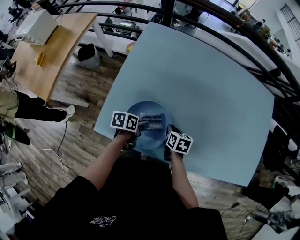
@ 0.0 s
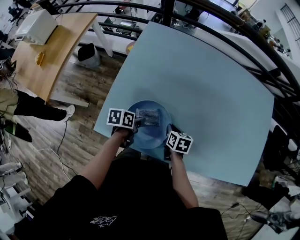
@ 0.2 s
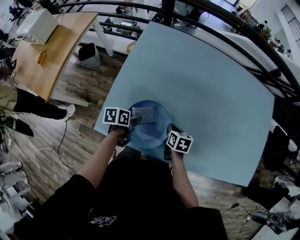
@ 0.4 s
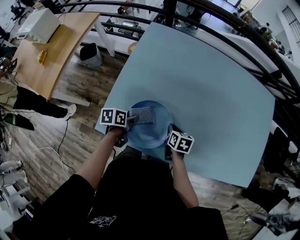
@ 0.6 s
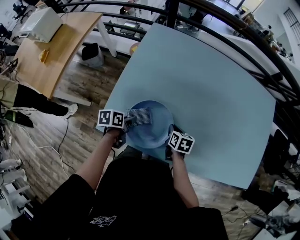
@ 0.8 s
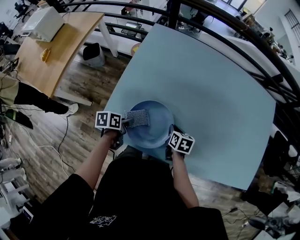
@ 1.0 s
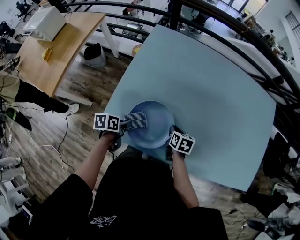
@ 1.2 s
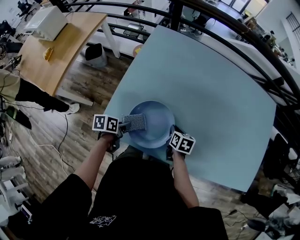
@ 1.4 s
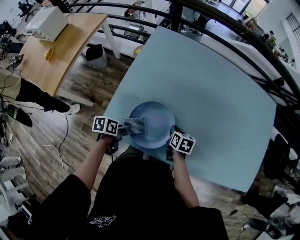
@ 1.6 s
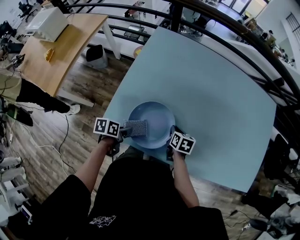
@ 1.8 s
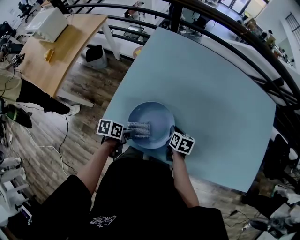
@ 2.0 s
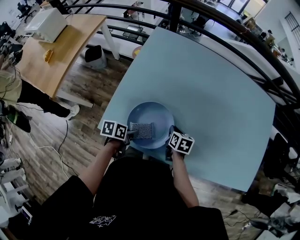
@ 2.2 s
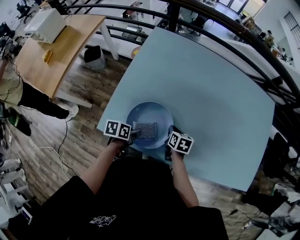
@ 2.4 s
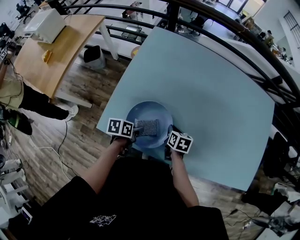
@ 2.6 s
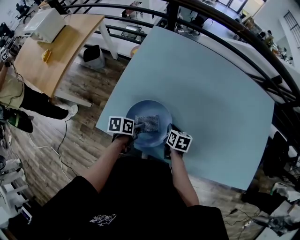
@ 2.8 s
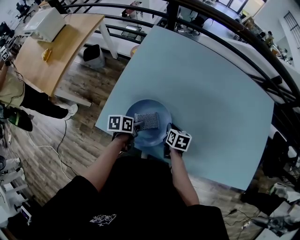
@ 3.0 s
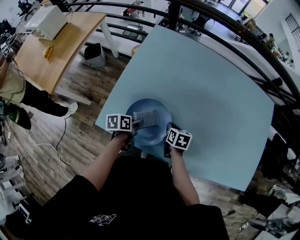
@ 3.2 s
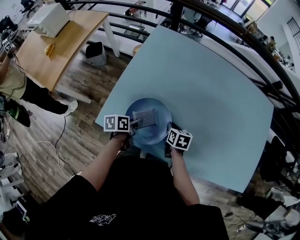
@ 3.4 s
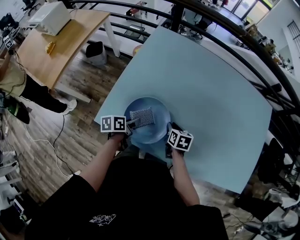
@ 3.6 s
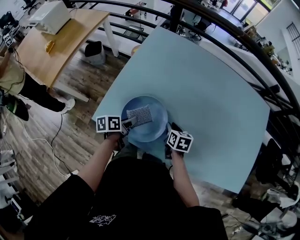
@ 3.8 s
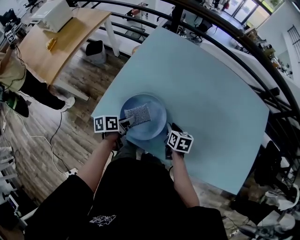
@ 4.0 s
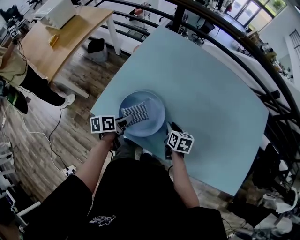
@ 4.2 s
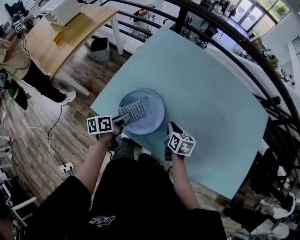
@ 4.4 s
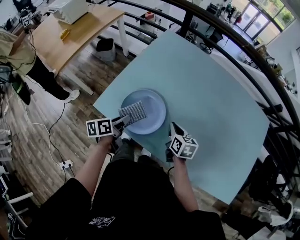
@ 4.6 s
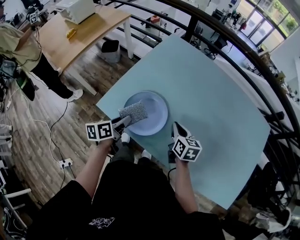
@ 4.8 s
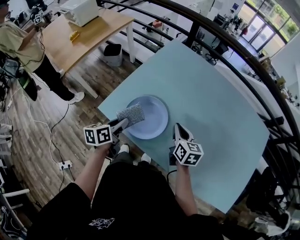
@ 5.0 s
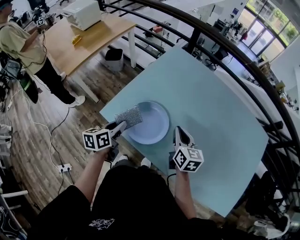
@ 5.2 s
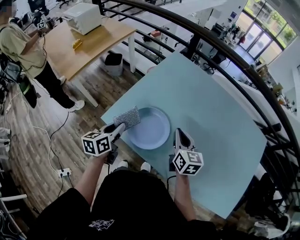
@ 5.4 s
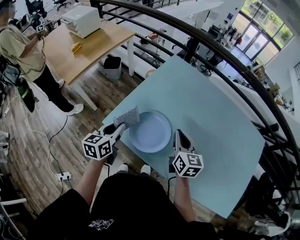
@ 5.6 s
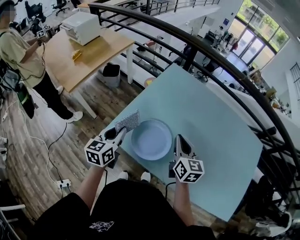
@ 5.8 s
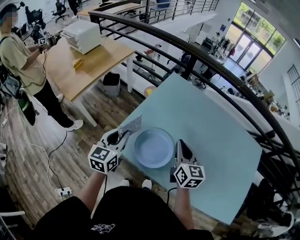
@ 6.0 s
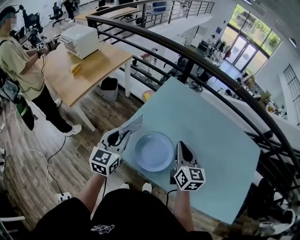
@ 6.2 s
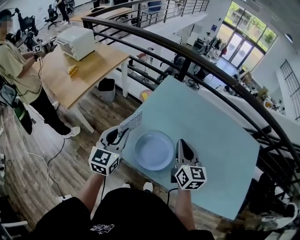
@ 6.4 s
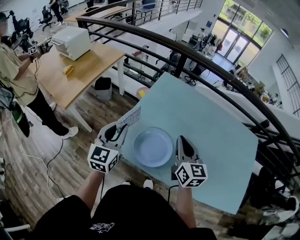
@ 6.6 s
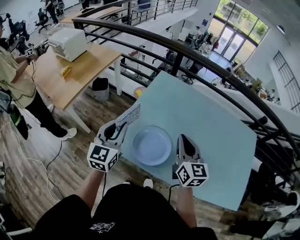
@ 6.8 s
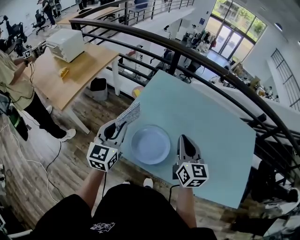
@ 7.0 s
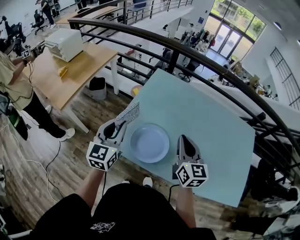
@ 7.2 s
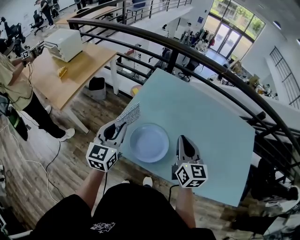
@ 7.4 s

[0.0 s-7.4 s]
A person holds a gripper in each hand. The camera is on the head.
0.0 to 1.4 s: The left gripper goes approximately 10 cm to the left and backward.
1.4 to 3.0 s: The left gripper heads to the right, covering about 5 cm.
3.0 to 4.4 s: The grippers both shift upward by some 5 cm. The left gripper turns by approximately 30 degrees.
4.4 to 6.0 s: Both grippers travel together upward and to the left, roughly 25 cm. The left gripper rotates around the line of its fingers by some 50 degrees, clockwise from behind. Meanwhile the right gripper rotates roughly 30 degrees.
6.0 to 7.4 s: The right gripper changes place by roughly 5 cm; the left gripper moves upward, about 5 cm.

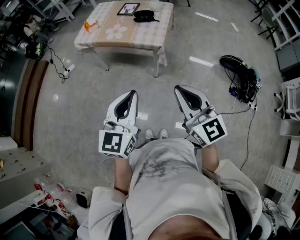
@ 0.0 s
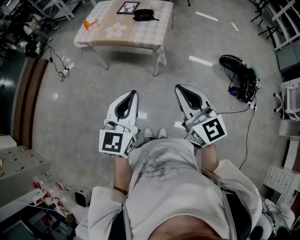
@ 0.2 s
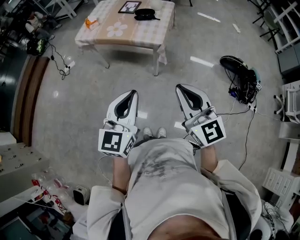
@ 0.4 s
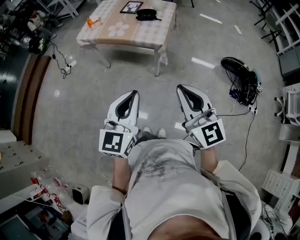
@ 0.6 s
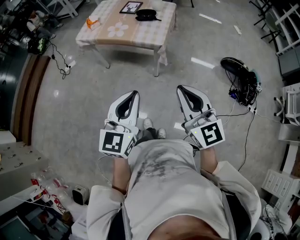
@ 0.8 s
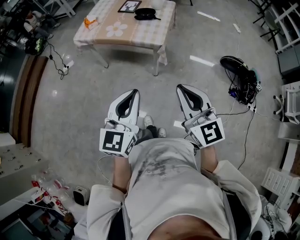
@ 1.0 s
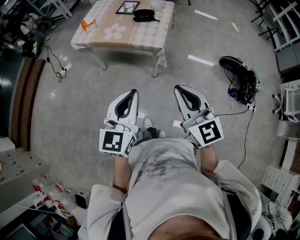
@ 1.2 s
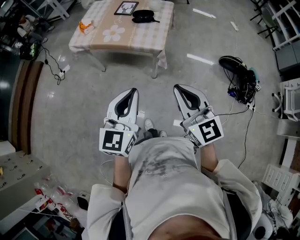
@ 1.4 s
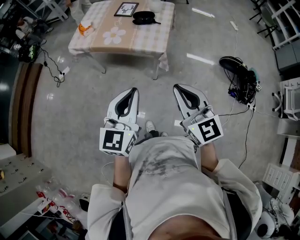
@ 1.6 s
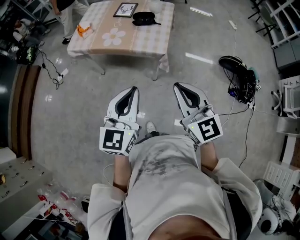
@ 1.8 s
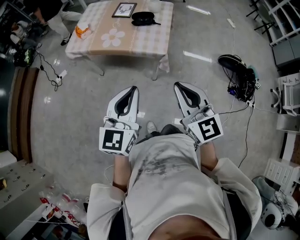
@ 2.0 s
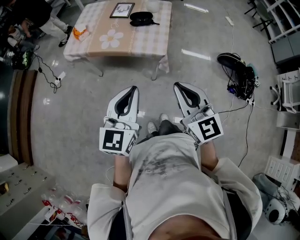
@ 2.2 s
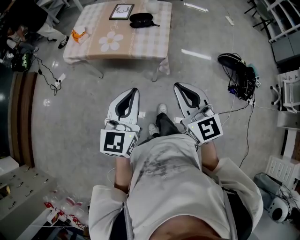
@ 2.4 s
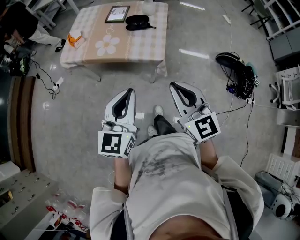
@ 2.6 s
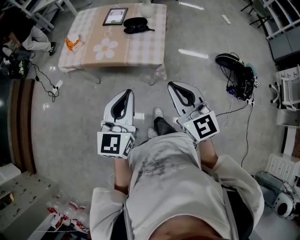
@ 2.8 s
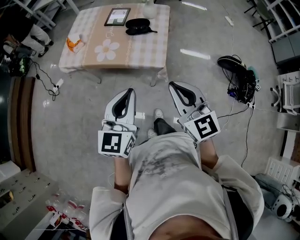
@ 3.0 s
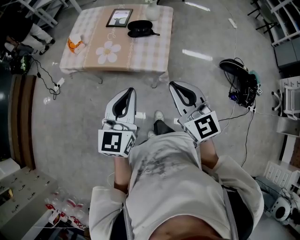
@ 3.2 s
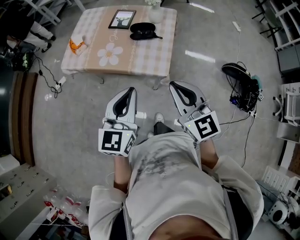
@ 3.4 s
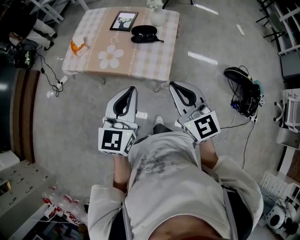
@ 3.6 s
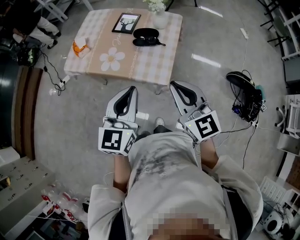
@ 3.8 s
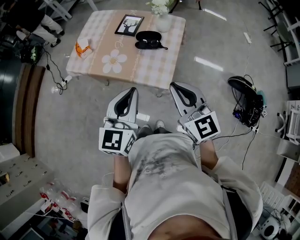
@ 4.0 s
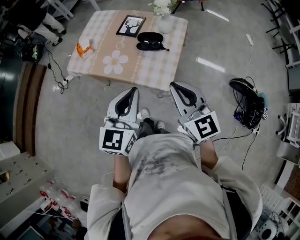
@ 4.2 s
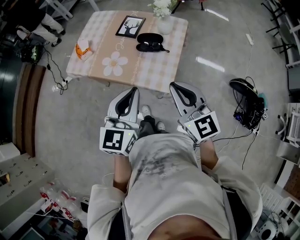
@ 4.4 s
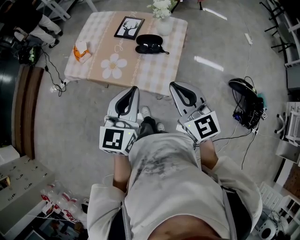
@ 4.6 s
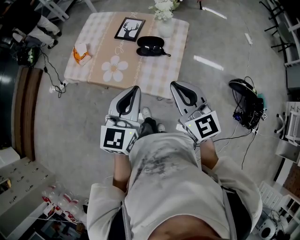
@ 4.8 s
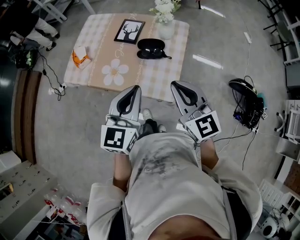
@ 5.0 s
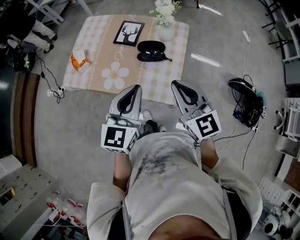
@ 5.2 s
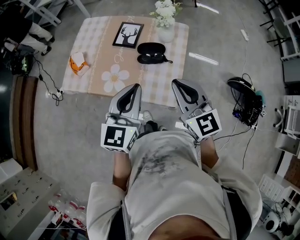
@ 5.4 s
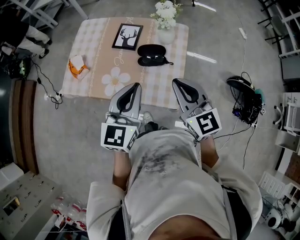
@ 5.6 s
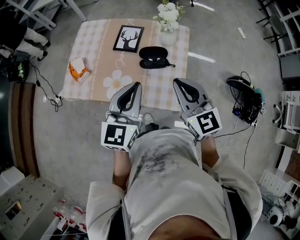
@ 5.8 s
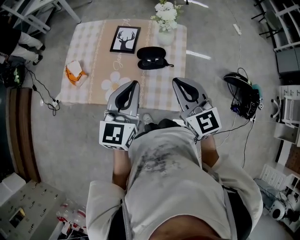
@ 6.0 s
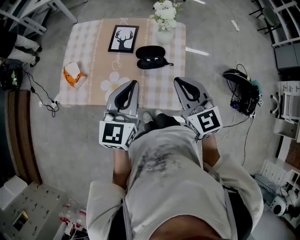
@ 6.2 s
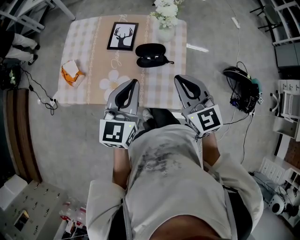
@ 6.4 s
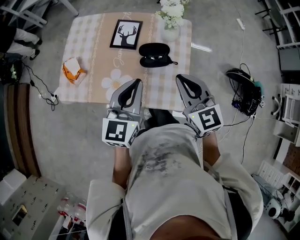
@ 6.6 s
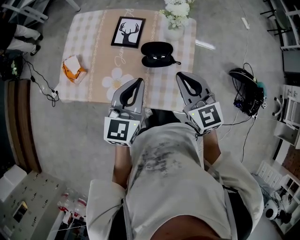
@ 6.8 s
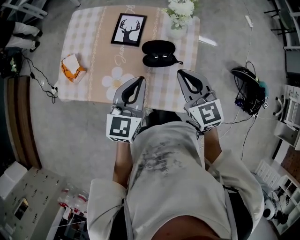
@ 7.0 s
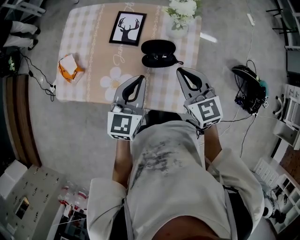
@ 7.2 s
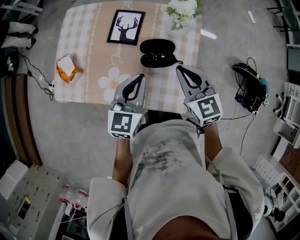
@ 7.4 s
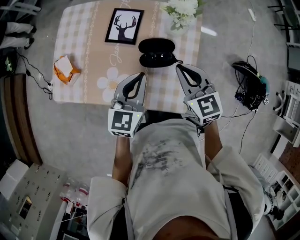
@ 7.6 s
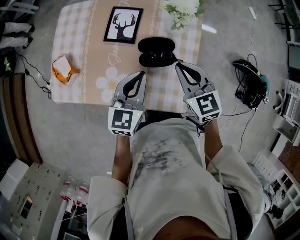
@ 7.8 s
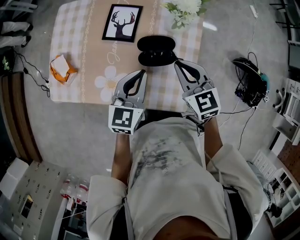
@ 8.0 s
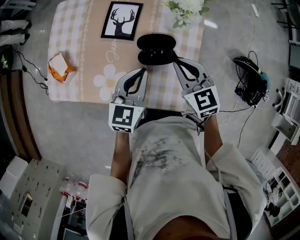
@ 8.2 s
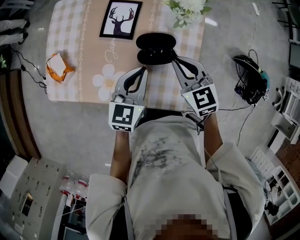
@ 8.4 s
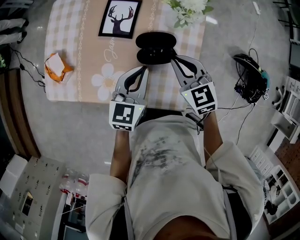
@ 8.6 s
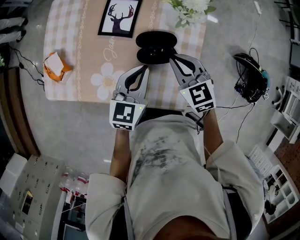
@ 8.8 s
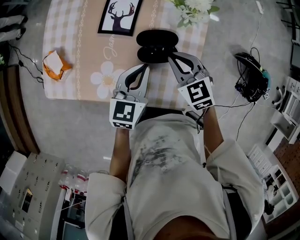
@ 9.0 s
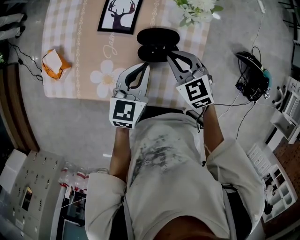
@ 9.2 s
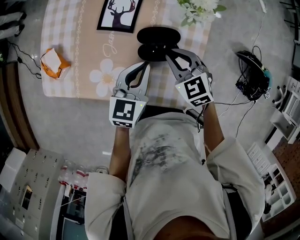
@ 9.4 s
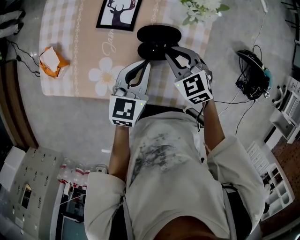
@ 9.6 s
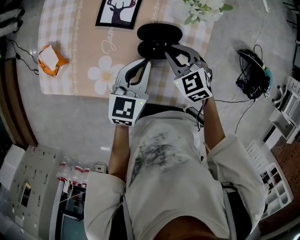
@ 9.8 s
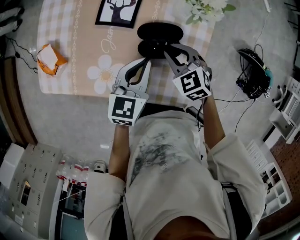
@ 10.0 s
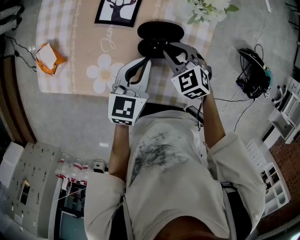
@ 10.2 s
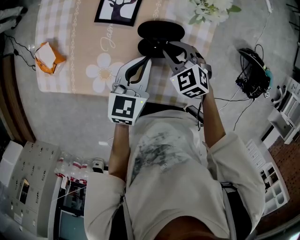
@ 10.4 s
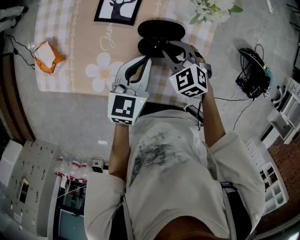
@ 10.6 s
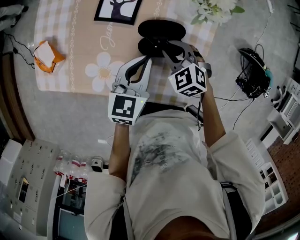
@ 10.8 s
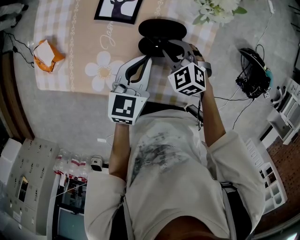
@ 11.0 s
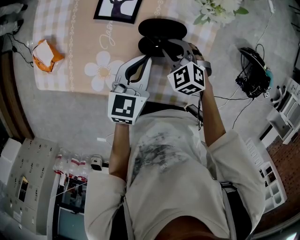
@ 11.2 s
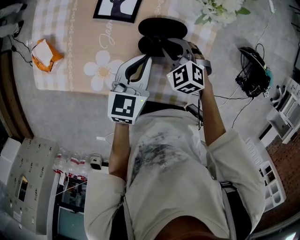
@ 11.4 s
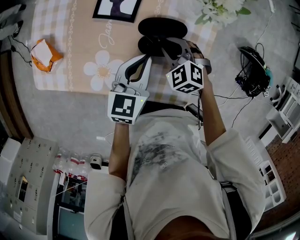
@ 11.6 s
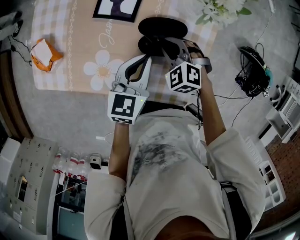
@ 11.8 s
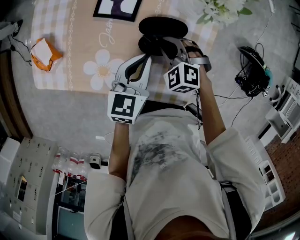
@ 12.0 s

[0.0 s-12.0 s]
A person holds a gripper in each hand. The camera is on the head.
0.0 to 1.6 s: The grippers both shift forward by about 10 cm.
1.6 to 3.0 s: Both grippers travel together forward, roughly 15 cm.
3.0 to 4.4 s: The two grippers go some 15 cm forward.
4.4 to 6.0 s: The grippers both shift forward by roughly 20 cm.
6.0 to 7.6 s: The right gripper goes approximately 20 cm forward and downward. The left gripper moves downward and forward, about 15 cm.
7.6 to 9.0 s: The two grippers go approximately 5 cm downward.
9.0 to 10.4 s: The right gripper is displaced downward by approximately 10 cm.
10.4 to 12.0 s: The right gripper swivels approximately 20 degrees.

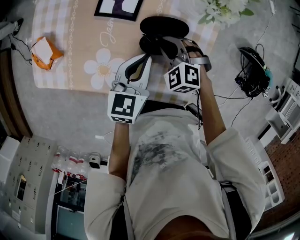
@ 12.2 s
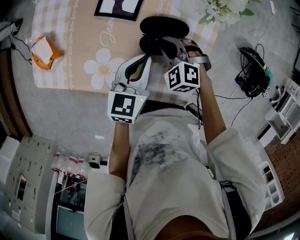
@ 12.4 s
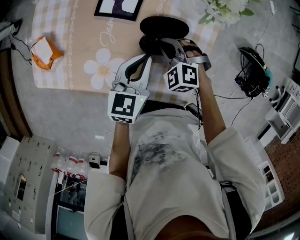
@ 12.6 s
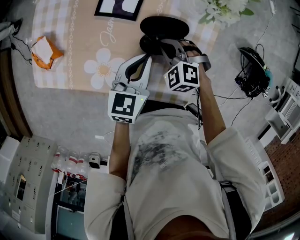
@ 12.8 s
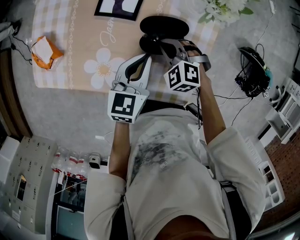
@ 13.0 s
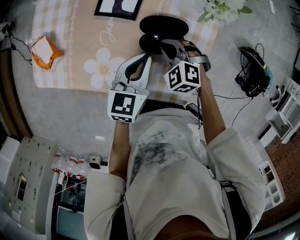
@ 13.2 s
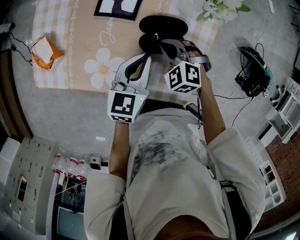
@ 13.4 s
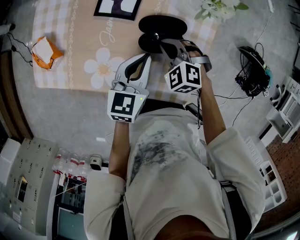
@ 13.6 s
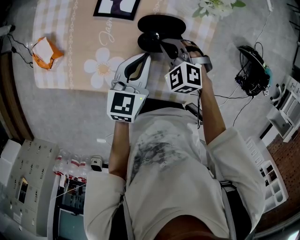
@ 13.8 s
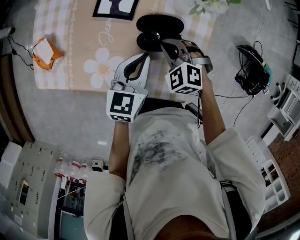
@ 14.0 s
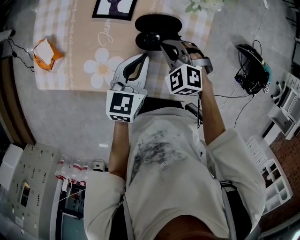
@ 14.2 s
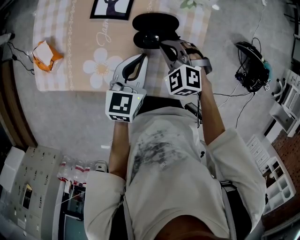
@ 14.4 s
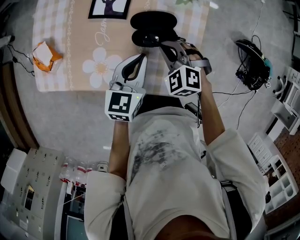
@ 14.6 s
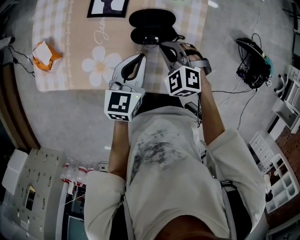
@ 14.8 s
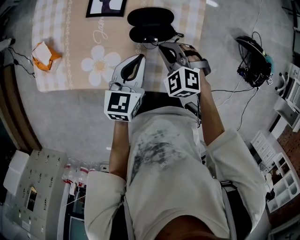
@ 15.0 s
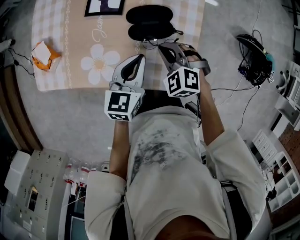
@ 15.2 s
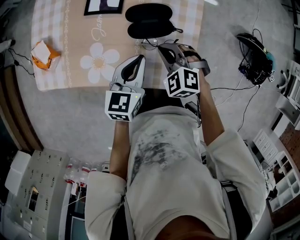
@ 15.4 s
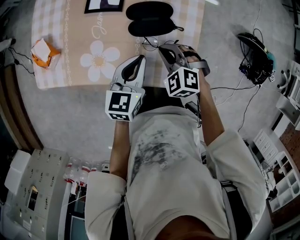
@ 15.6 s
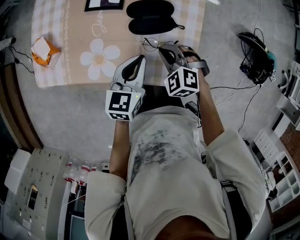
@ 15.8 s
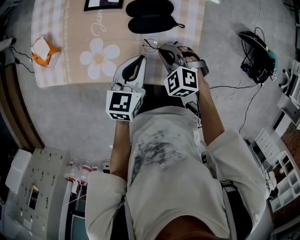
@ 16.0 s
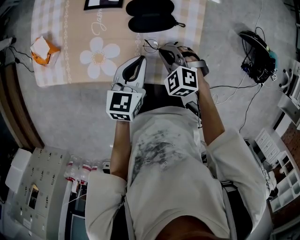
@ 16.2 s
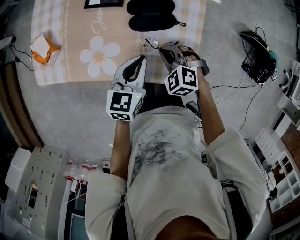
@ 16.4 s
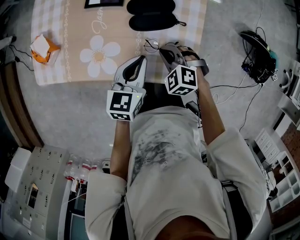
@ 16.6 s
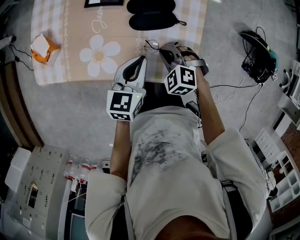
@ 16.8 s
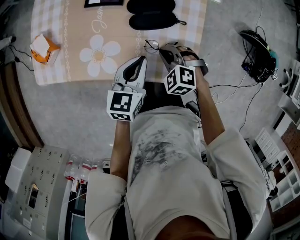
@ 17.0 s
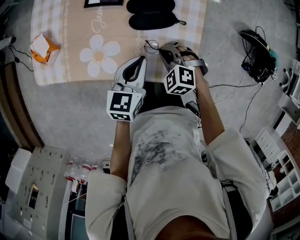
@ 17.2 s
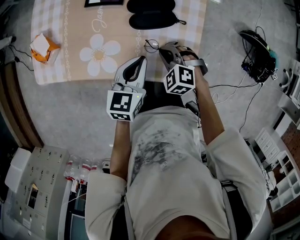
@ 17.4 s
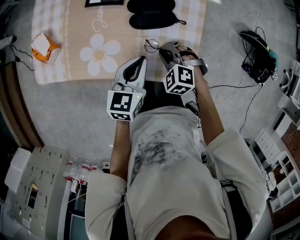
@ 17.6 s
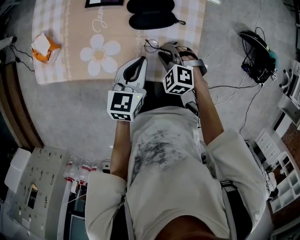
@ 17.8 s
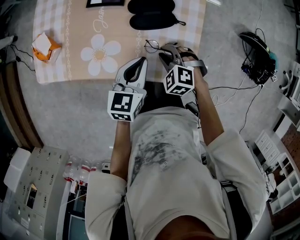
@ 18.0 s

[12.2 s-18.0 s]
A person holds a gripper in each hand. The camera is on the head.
12.2 to 13.6 s: Neither gripper changes place.
13.6 to 15.0 s: The right gripper goes about 5 cm backward.
15.0 to 16.6 s: The right gripper travels backward and downward by roughly 10 cm. The left gripper ends up roughly 5 cm from where it was.
16.6 to 18.0 s: The grippers move only a little.
